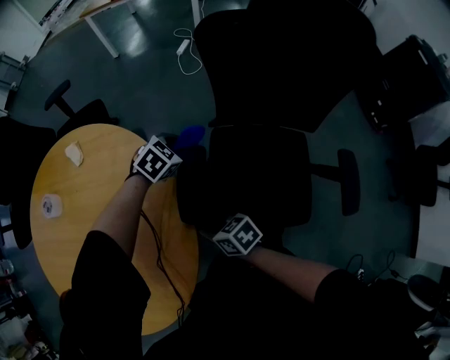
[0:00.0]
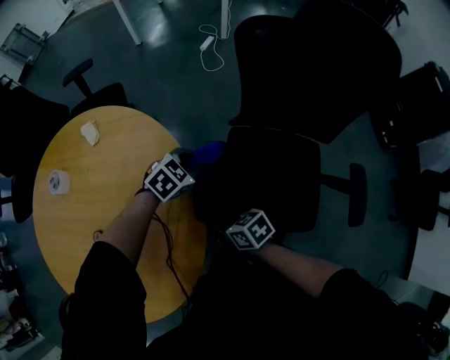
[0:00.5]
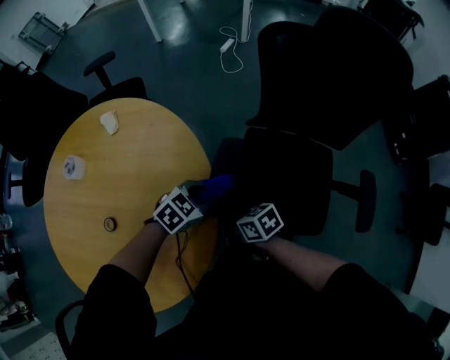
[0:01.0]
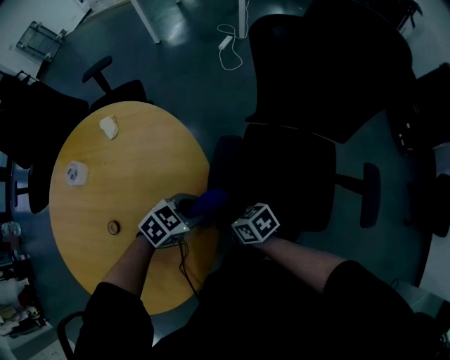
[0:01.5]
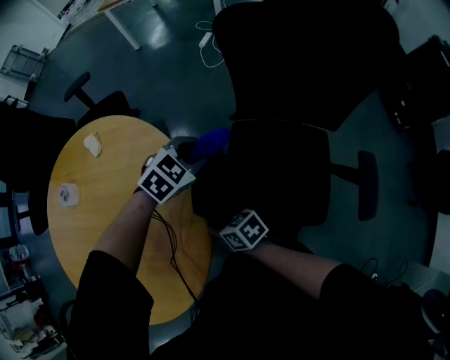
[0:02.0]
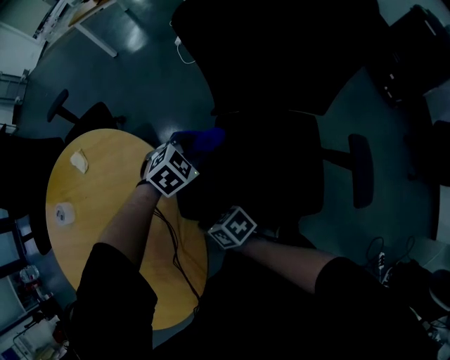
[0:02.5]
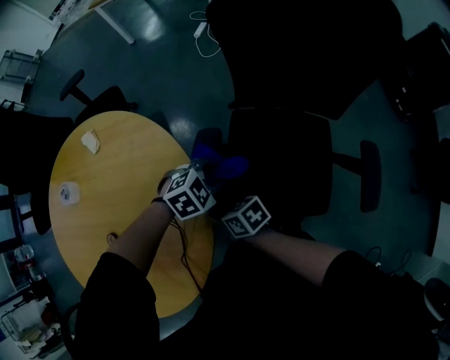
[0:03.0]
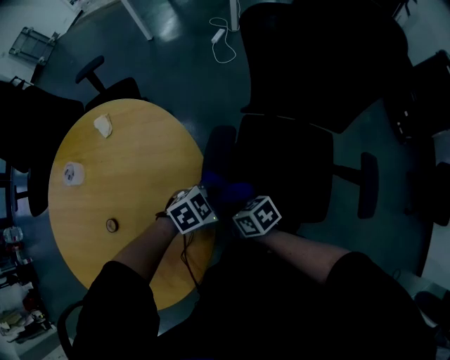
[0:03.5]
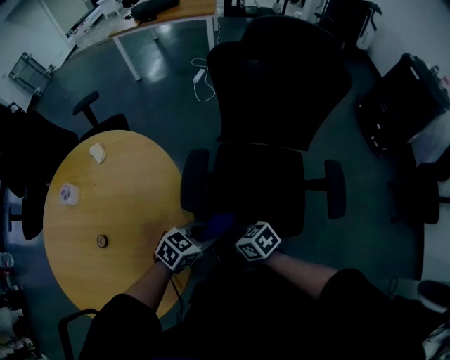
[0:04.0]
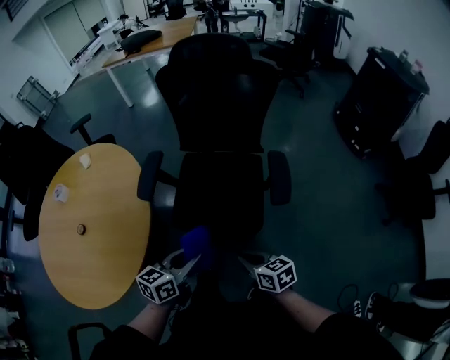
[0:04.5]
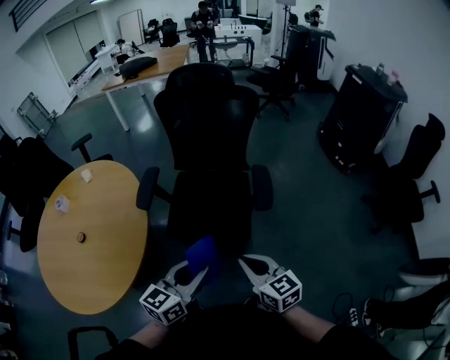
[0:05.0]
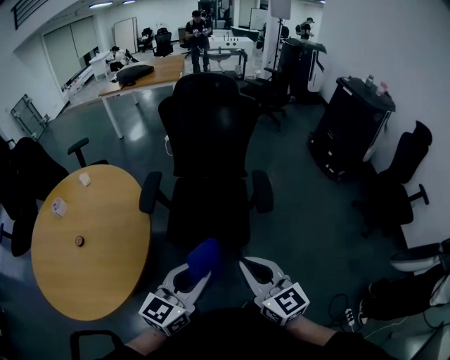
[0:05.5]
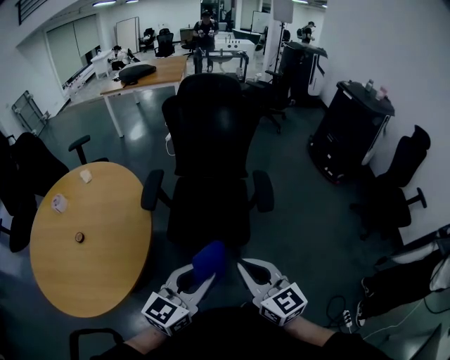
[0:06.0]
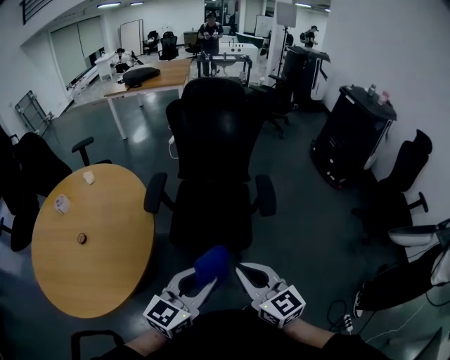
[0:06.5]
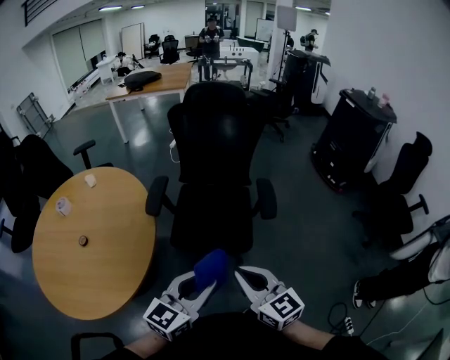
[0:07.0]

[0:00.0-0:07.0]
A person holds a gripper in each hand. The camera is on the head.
0:00.0 to 0:02.0: The left gripper moves upward, roughly 5 cm.
0:02.0 to 0:03.5: The left gripper changes place by roughly 20 cm.
0:03.5 to 0:05.0: The right gripper shifts by approximately 50 cm, and rotates roughly 50 degrees, while the left gripper changes place by about 40 cm, and tilts its fingers roughly 40 degrees upward.
0:05.0 to 0:07.0: The right gripper heads upward, to the left and backward, covering some 10 cm. The left gripper moves backward, some 5 cm.

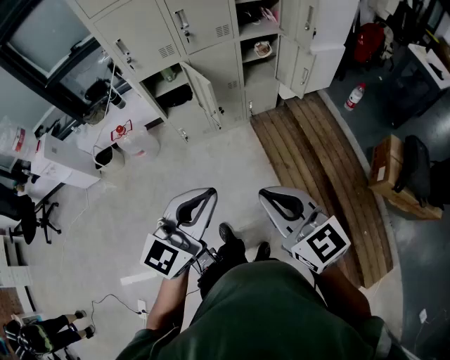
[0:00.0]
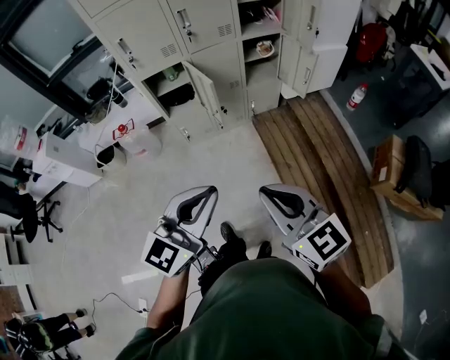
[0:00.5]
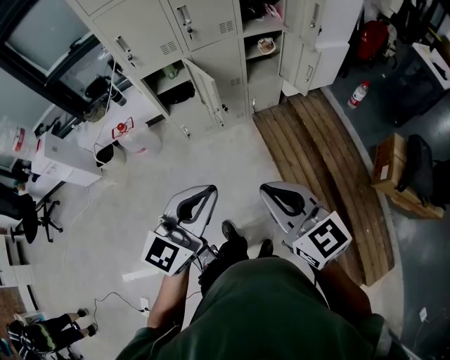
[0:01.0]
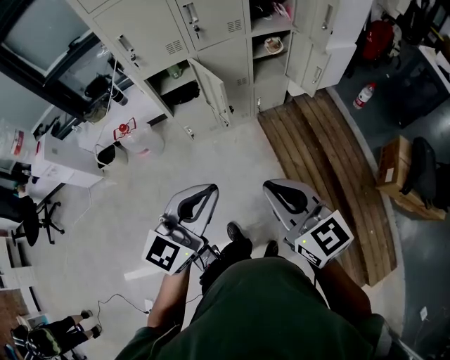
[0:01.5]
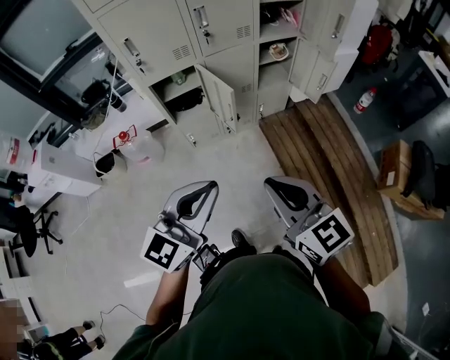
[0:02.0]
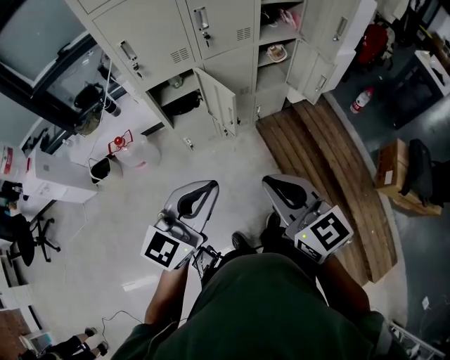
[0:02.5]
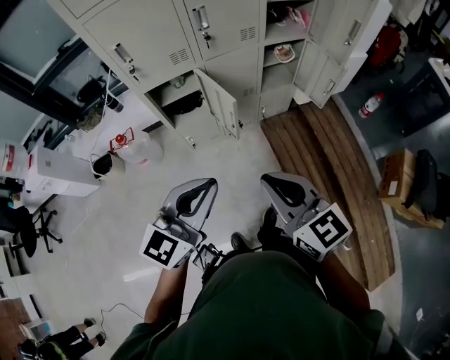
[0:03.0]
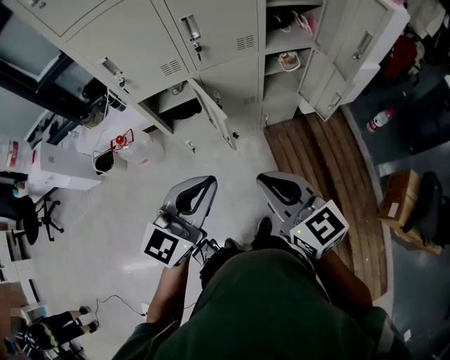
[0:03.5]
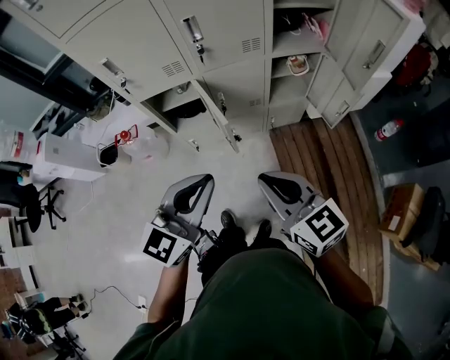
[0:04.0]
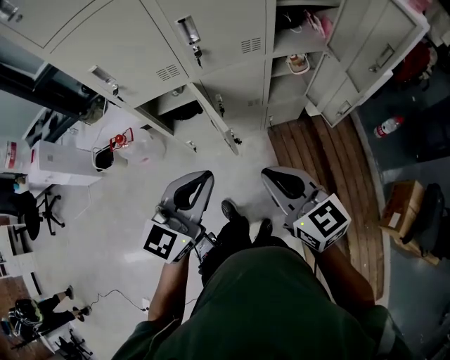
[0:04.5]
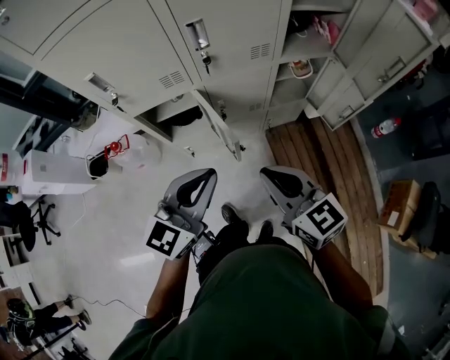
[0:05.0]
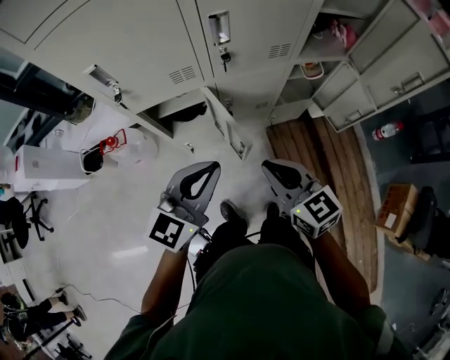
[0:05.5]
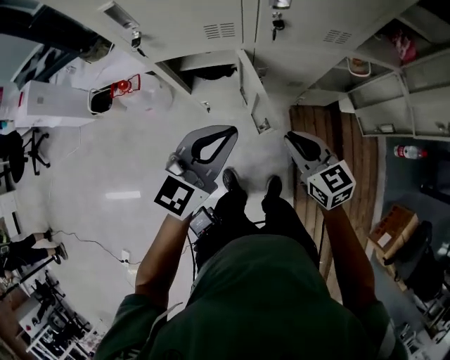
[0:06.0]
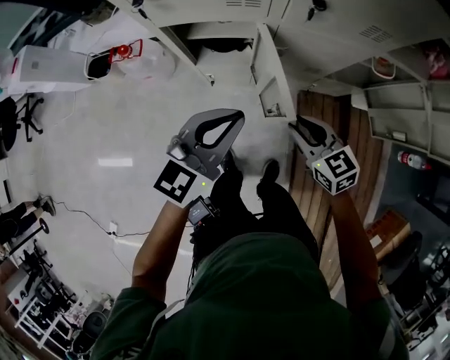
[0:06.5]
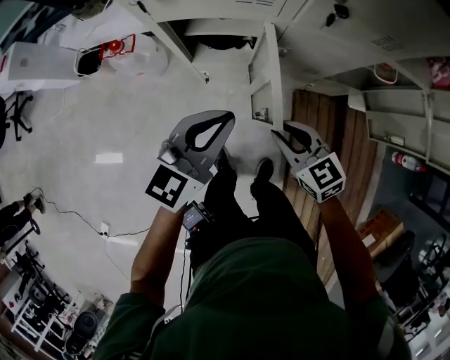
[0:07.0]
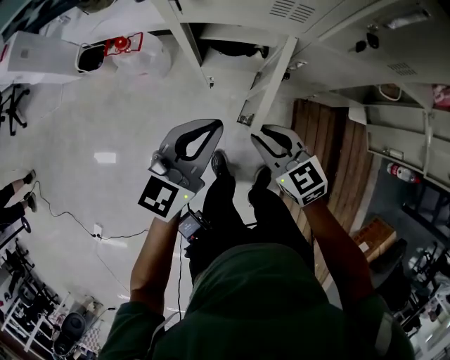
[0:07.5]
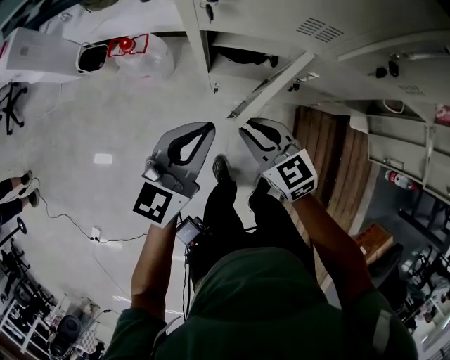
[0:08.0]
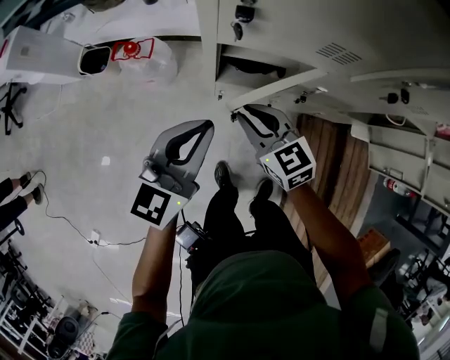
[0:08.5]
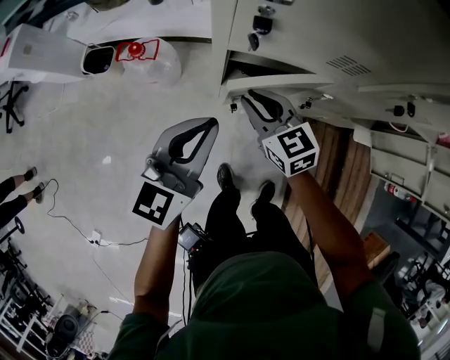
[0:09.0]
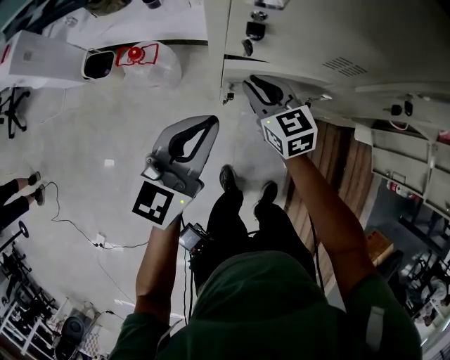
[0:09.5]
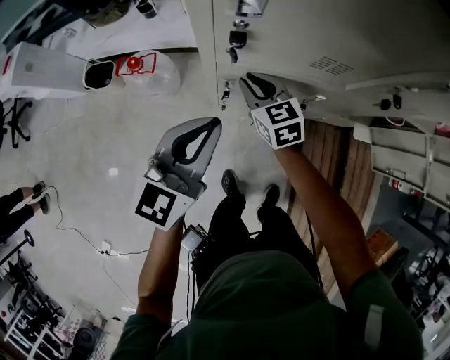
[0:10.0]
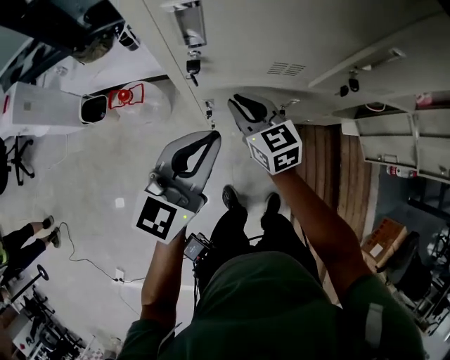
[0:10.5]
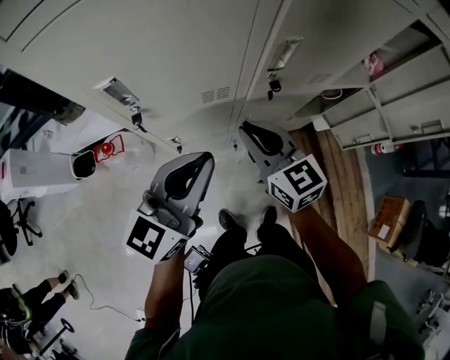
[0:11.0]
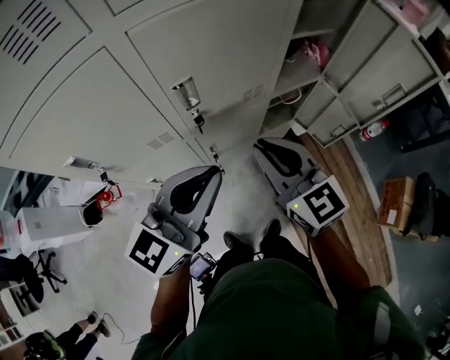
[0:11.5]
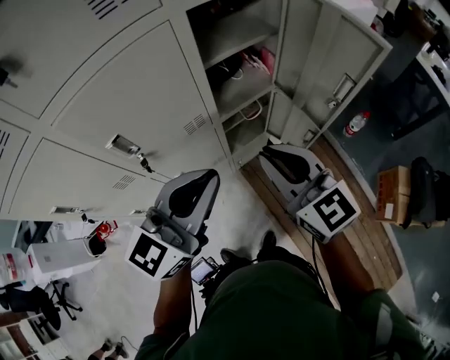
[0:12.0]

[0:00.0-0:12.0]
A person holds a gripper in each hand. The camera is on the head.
0:00.0 to 0:02.0: The two grippers go some 15 cm forward and to the left.
0:02.0 to 0:04.0: The left gripper travels forward and to the right by about 20 cm, while the right gripper moves forward, some 20 cm.
0:04.0 to 0:06.0: The left gripper travels forward, downward and to the left by roughly 25 cm. The right gripper moves forward and downward, about 25 cm.
0:06.0 to 0:08.0: The left gripper goes about 20 cm to the left and downward, while the right gripper moves to the left, approximately 20 cm.
0:08.0 to 0:10.0: The right gripper goes about 20 cm forward. Meanwhile the left gripper moves forward, approximately 5 cm.
0:10.0 to 0:12.0: The two grippers travel together, roughly 50 cm. The right gripper turns by roughly 40 degrees, while the left gripper changes its angle by approximately 40 degrees.

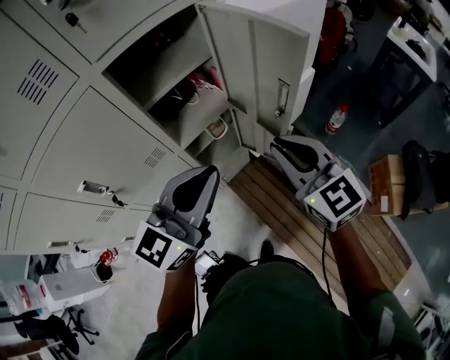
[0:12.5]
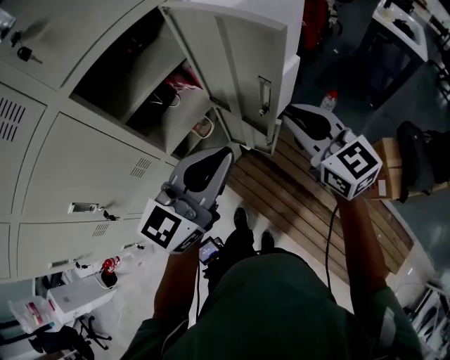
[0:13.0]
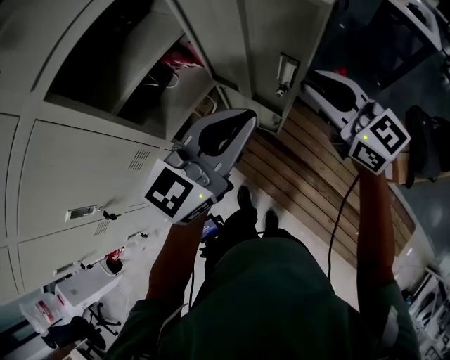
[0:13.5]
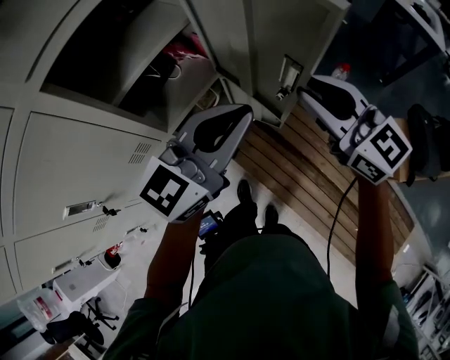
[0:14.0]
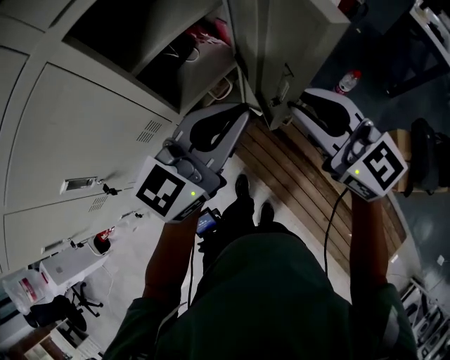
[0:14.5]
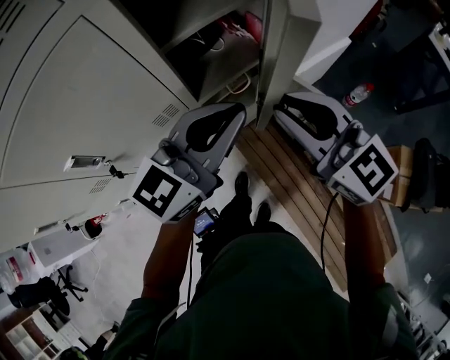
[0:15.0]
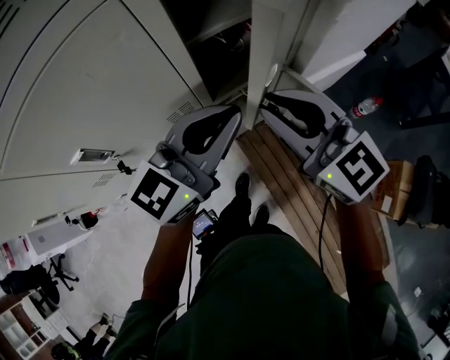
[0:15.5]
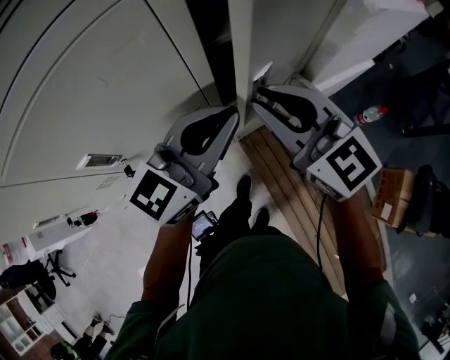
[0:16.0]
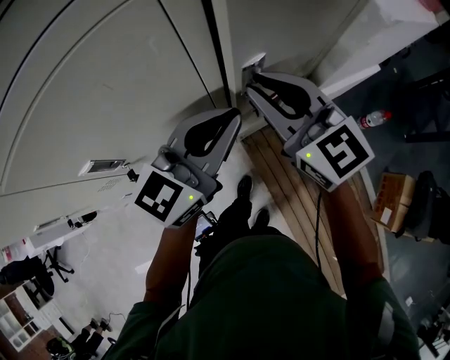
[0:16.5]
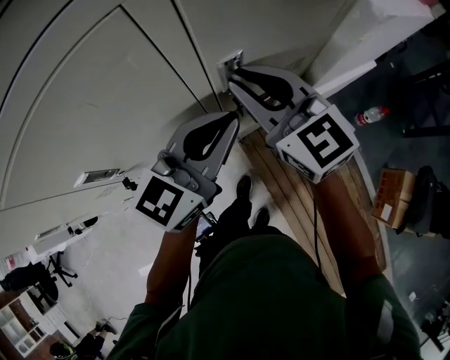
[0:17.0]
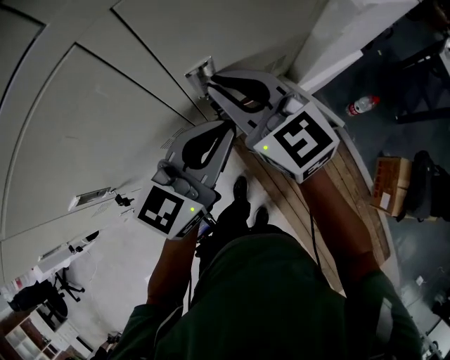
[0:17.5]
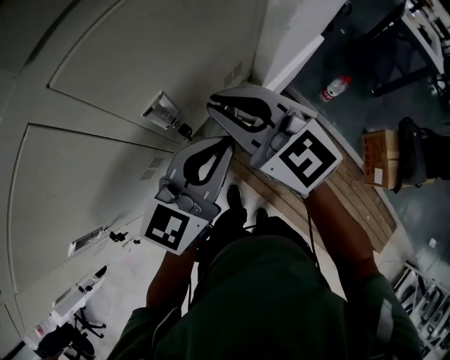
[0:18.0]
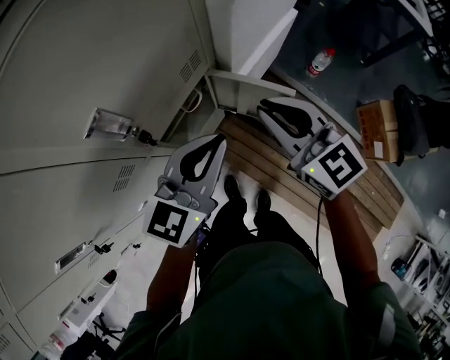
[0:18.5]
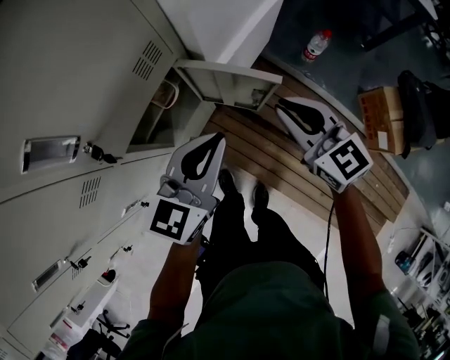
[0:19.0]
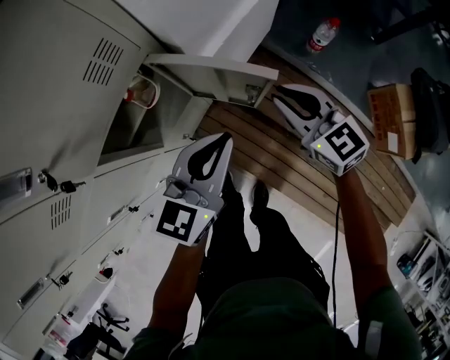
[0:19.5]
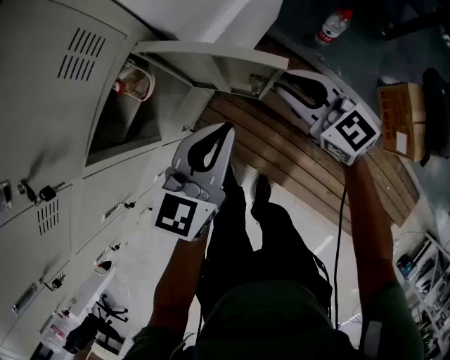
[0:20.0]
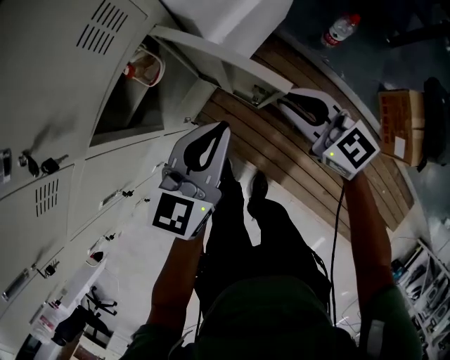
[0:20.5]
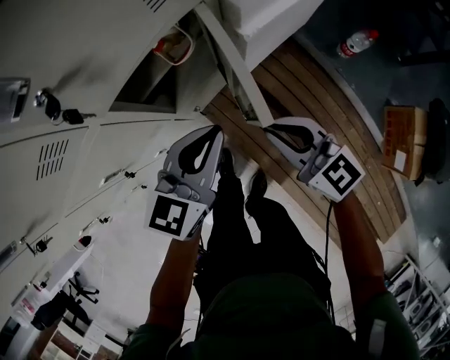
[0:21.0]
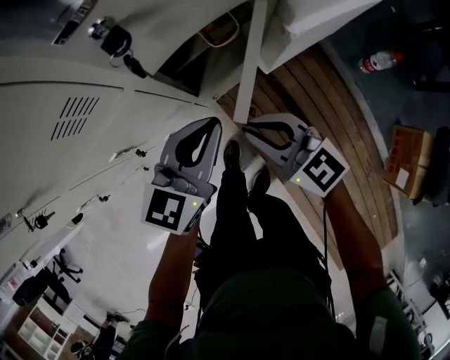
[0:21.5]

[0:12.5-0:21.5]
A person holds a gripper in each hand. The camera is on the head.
0:12.5 to 0:14.5: The left gripper goes some 10 cm forward.
0:14.5 to 0:17.0: The left gripper moves to the left and forward, roughly 15 cm. The right gripper is displaced to the left and forward by approximately 25 cm.
0:17.0 to 0:19.5: The right gripper heads to the right and downward, covering some 50 cm, and turns by some 30 degrees; the left gripper shifts roughly 35 cm downward and to the right, and swivels about 20 degrees.
0:19.5 to 0:21.5: The left gripper shifts by roughly 20 cm, and swivels roughly 20 degrees. Meanwhile the right gripper changes place by about 25 cm, and turns by approximately 30 degrees.
